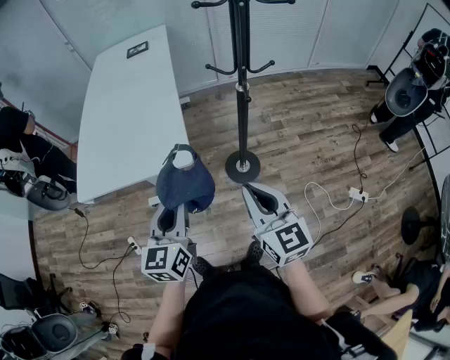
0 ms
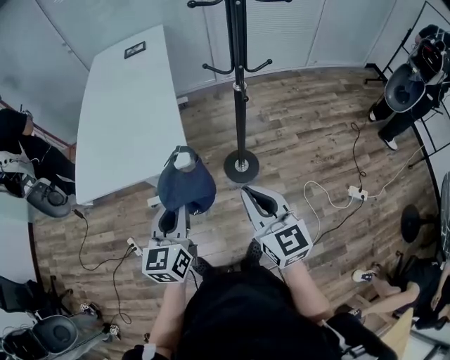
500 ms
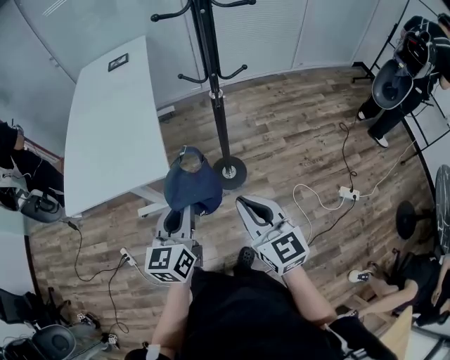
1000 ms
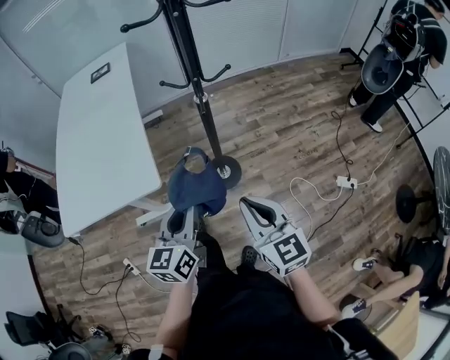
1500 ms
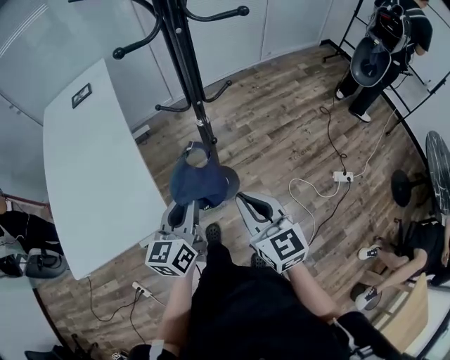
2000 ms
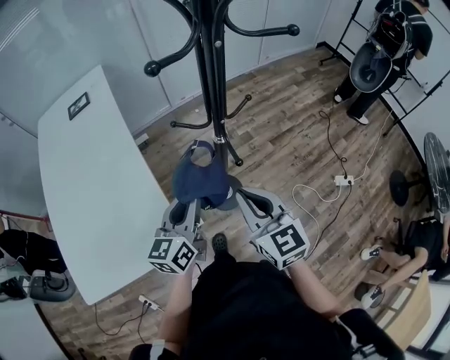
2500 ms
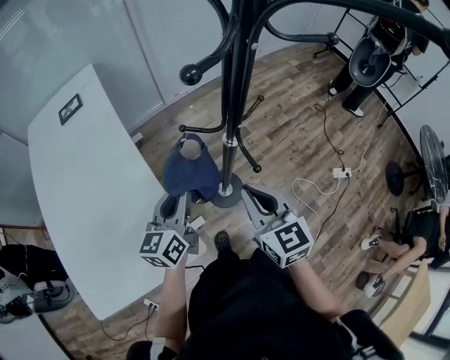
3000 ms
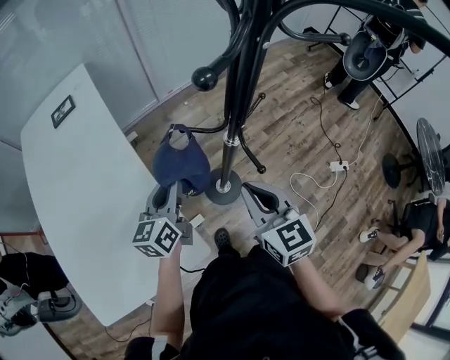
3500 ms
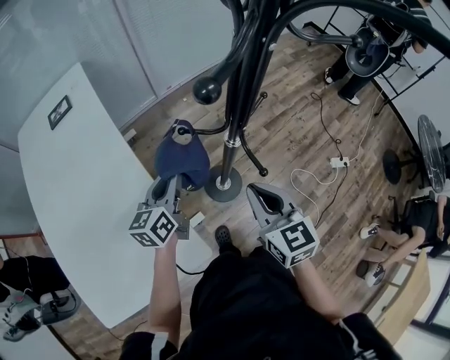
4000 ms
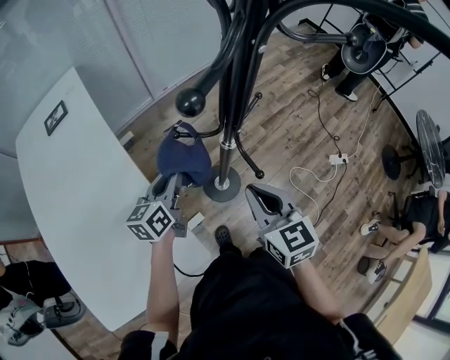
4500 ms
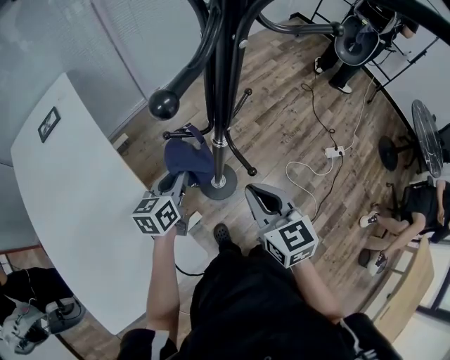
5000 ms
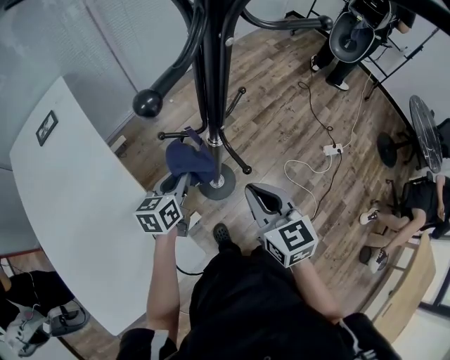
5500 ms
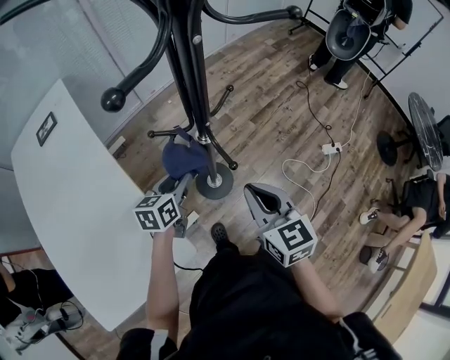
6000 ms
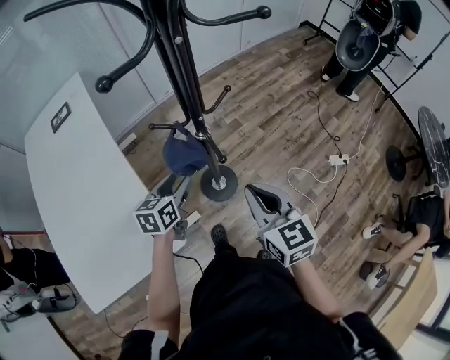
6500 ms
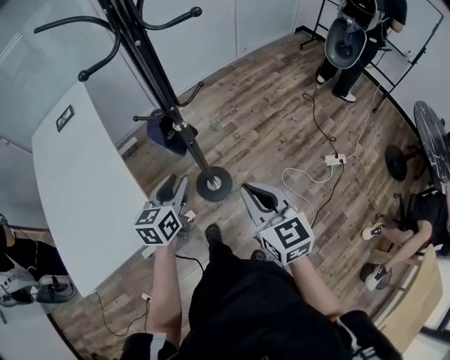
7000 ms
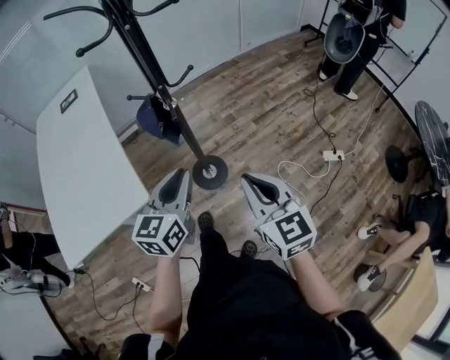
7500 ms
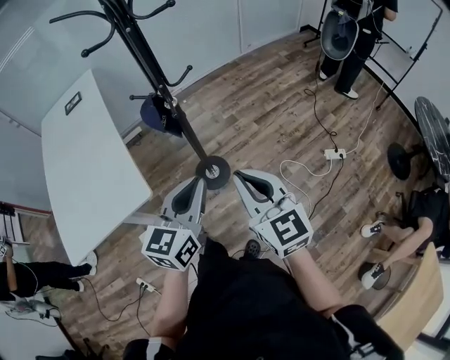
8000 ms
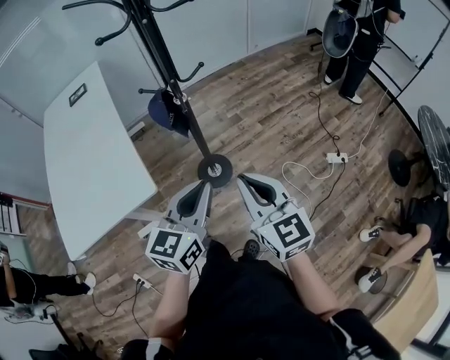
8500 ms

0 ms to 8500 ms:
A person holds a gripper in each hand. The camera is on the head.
0 ms to 2000 ms: The right gripper moves forward and to the right, some 10 cm. Meanwhile the left gripper travels forward and to the right by some 20 cm, and turns by about 20 degrees.
2000 ms to 4000 ms: The left gripper heads forward and to the left, covering about 25 cm. The right gripper travels forward and to the left by about 15 cm.
4000 ms to 6500 ms: The two grippers go some 10 cm to the right. The left gripper opens its fingers.
6500 ms to 8500 ms: The right gripper is displaced backward and to the right by some 15 cm; the left gripper moves backward, to the right and upward, approximately 35 cm, turns by approximately 30 degrees, and closes its fingers.

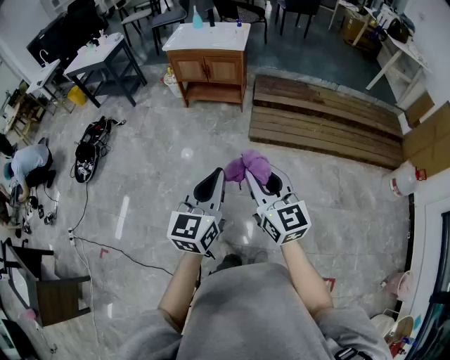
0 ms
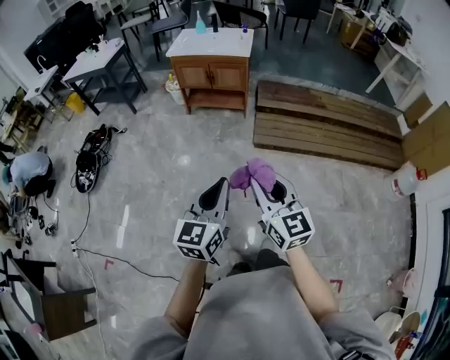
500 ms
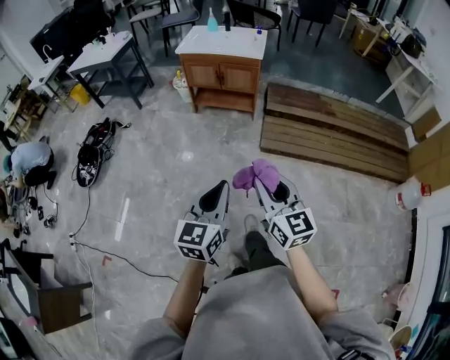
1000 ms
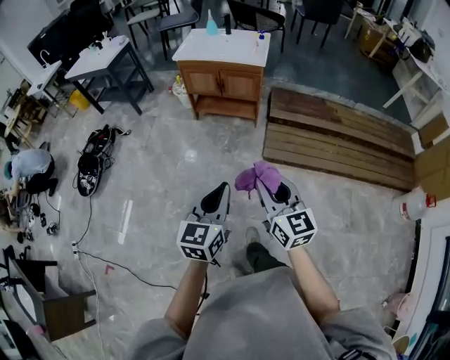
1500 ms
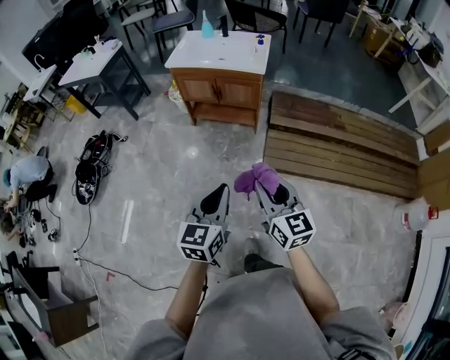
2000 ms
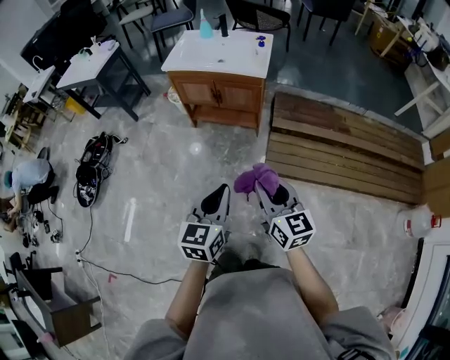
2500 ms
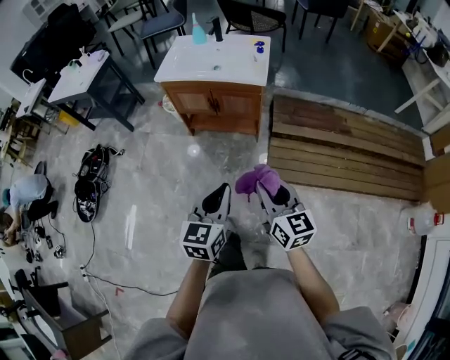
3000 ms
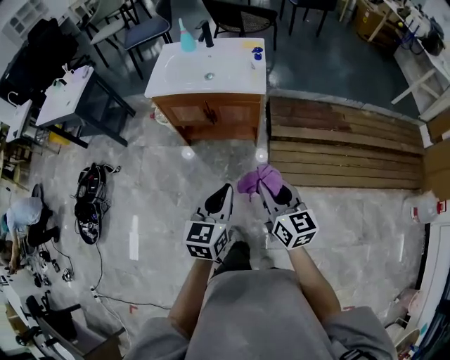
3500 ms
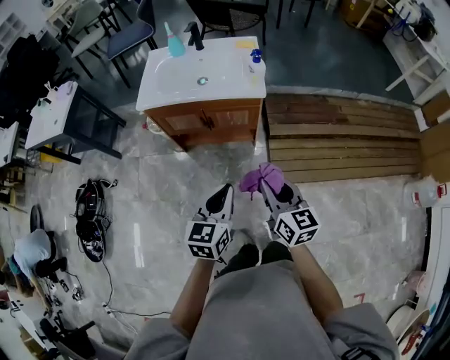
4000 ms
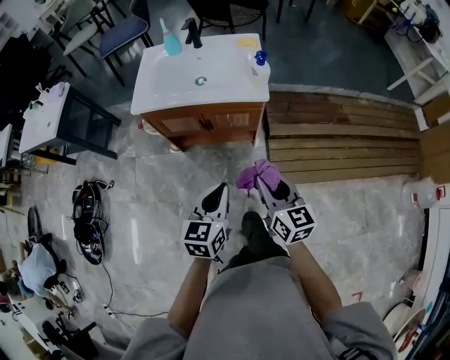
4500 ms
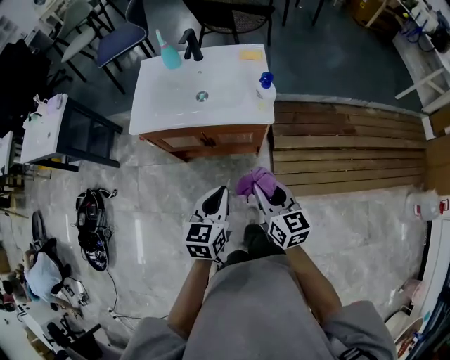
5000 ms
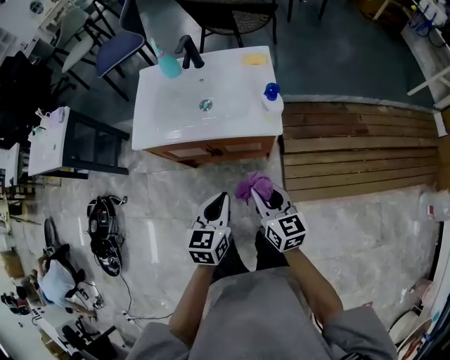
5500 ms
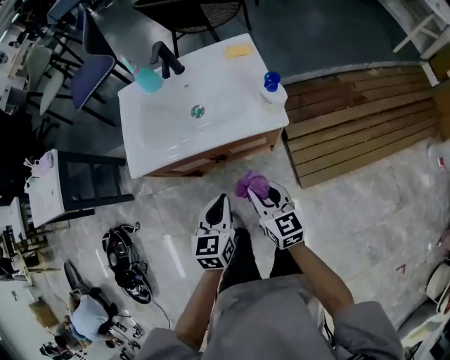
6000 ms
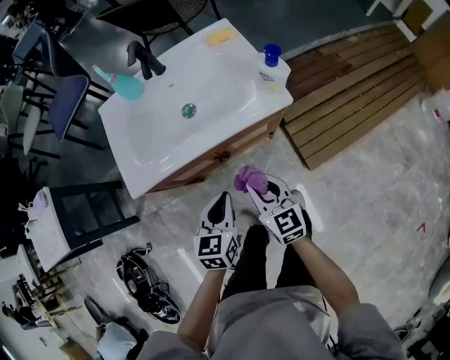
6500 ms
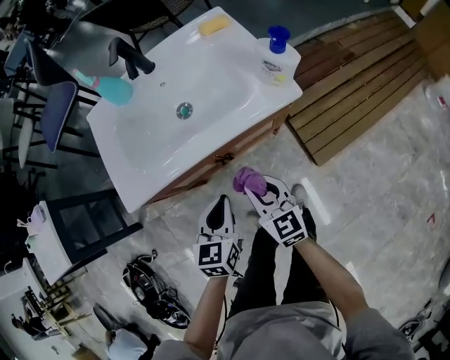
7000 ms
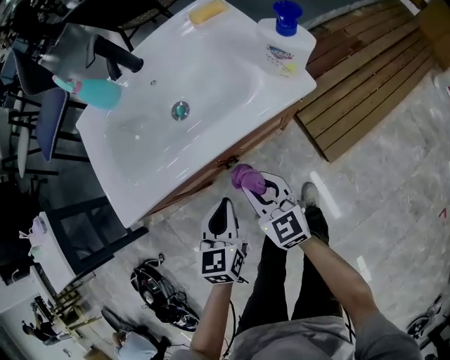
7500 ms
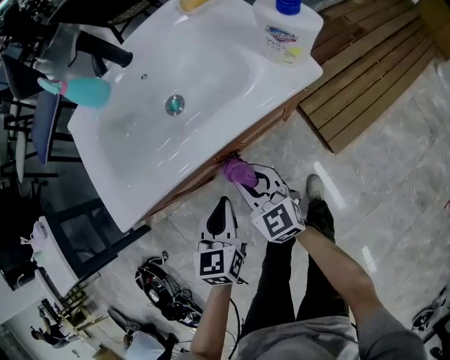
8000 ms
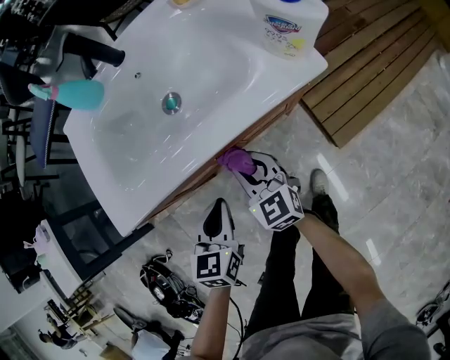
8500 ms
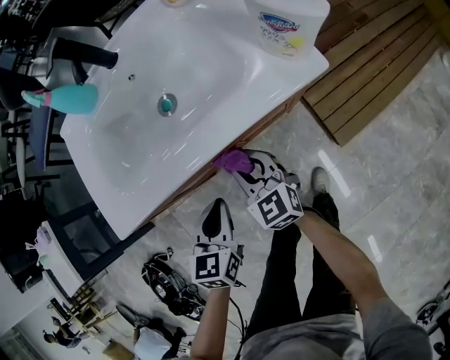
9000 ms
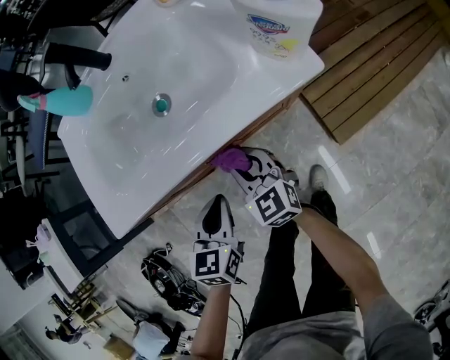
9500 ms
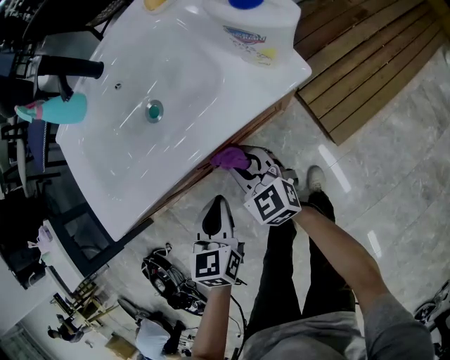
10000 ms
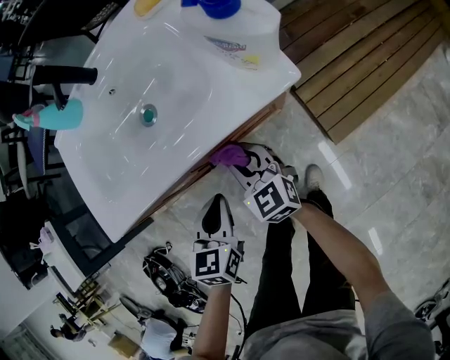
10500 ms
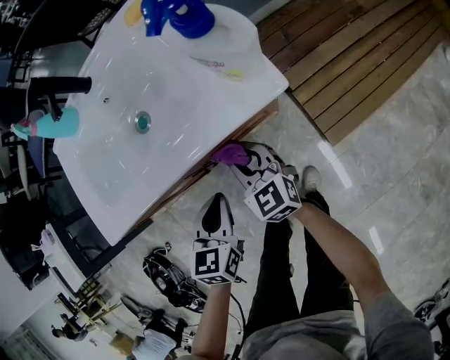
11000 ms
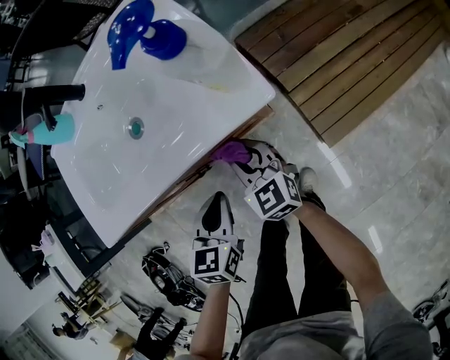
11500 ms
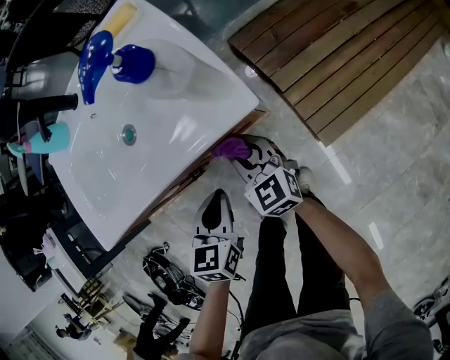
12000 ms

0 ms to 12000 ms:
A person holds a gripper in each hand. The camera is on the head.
0 ms to 2000 ms: The two grippers go about 30 cm forward.
2000 ms to 4000 ms: Both grippers travel together forward, approximately 30 cm.
4000 ms to 6000 ms: The right gripper shifts approximately 30 cm forward, downward and to the left. Meanwhile the left gripper is displaced forward and downward by some 30 cm.
6000 ms to 8000 ms: The left gripper heads downward and to the left, covering roughly 20 cm, while the right gripper moves downward, to the left and forward, about 20 cm.
8000 ms to 10000 ms: The right gripper moves approximately 5 cm.
10000 ms to 12000 ms: Both grippers travel together to the right, about 10 cm.

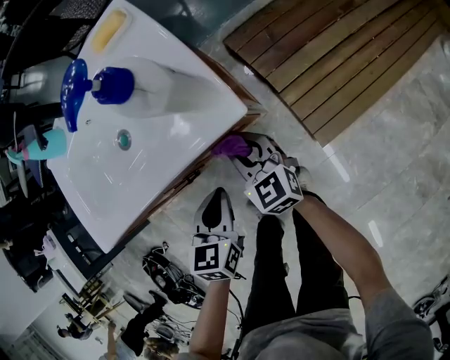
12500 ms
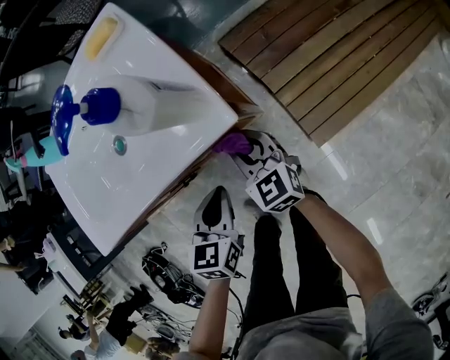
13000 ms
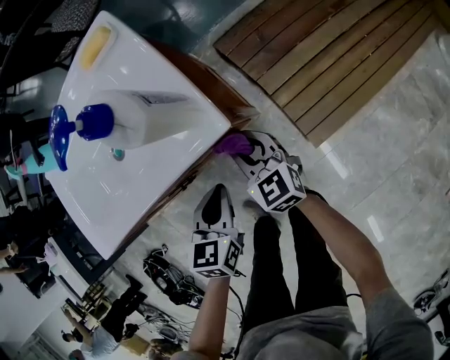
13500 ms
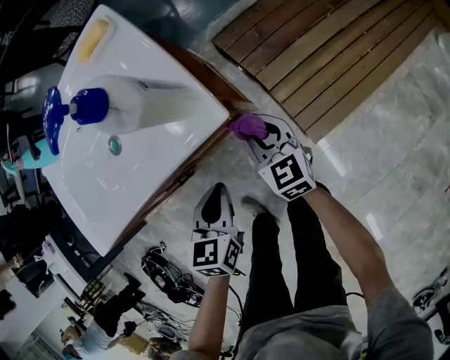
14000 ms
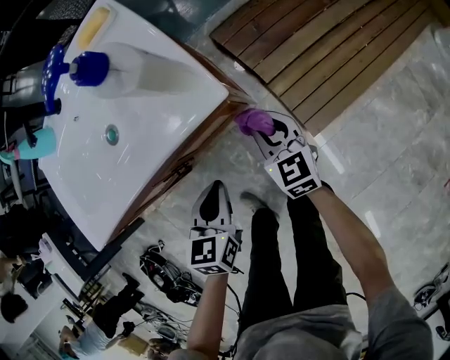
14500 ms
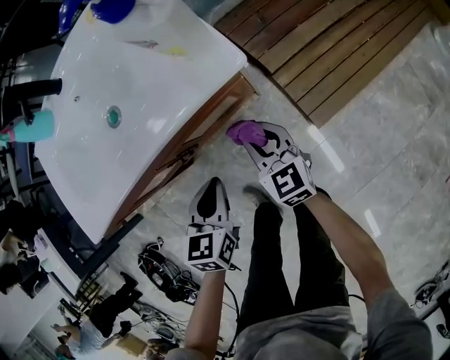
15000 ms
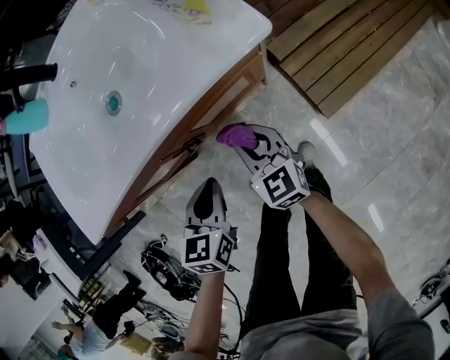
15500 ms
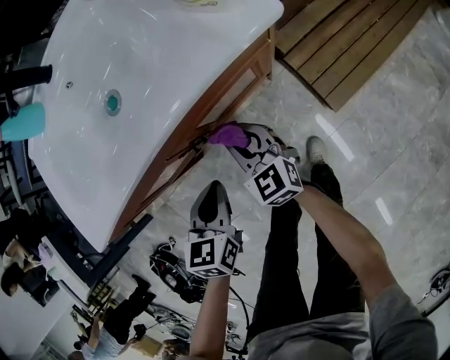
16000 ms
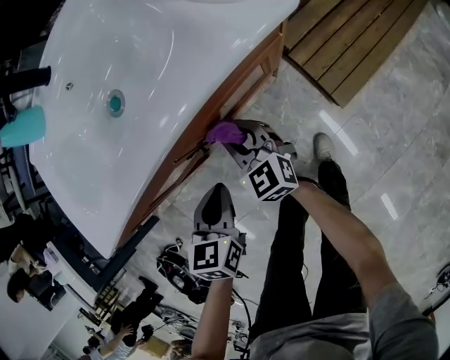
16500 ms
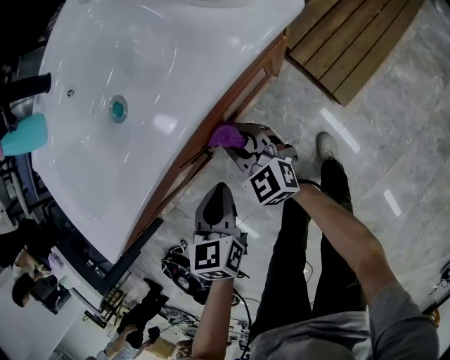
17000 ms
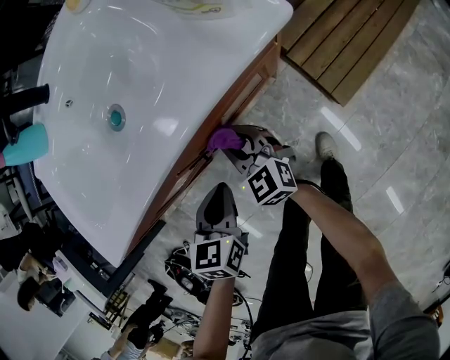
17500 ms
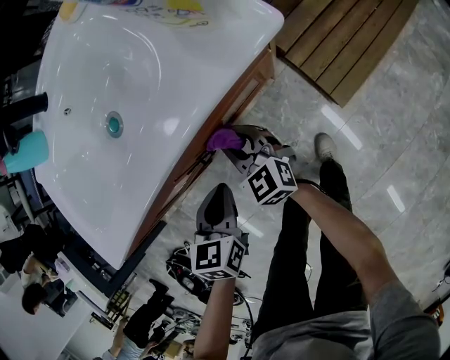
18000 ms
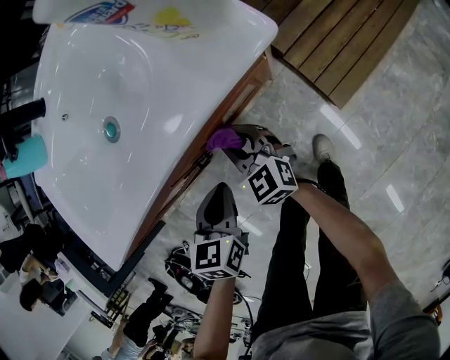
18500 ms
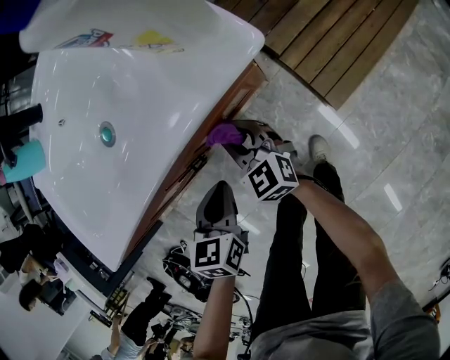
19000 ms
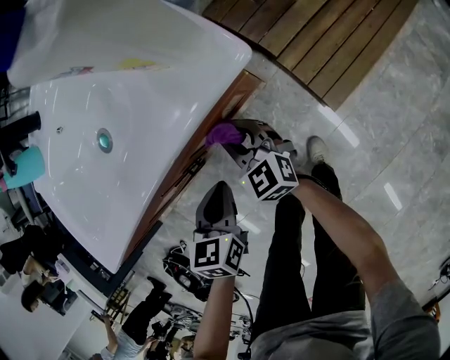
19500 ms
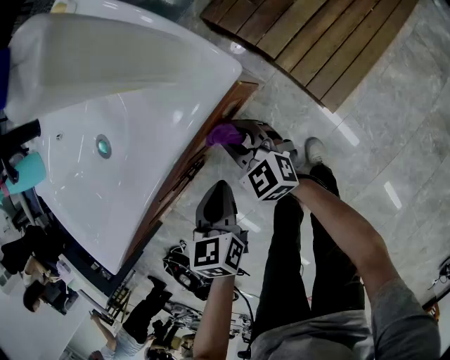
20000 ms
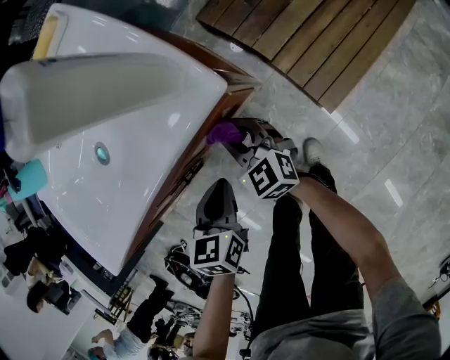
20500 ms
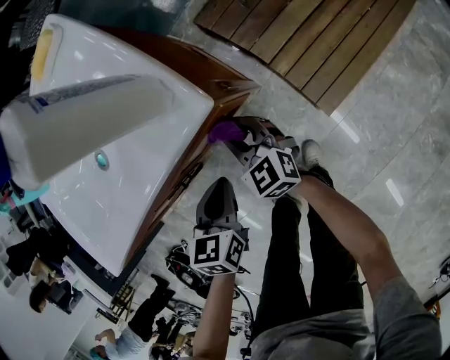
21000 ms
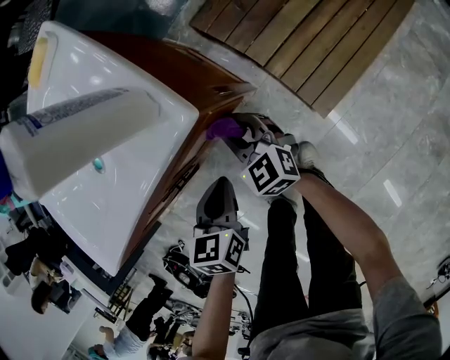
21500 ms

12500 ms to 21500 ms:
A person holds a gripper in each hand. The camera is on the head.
12500 ms to 14500 ms: The right gripper travels to the right by approximately 10 cm.
14500 ms to 17000 ms: The left gripper heads to the left and downward, covering about 15 cm. Meanwhile the right gripper goes some 20 cm to the left.
17000 ms to 19500 ms: The grippers both shift to the right by some 5 cm.
19500 ms to 21500 ms: The grippers both shift to the right by about 10 cm.
